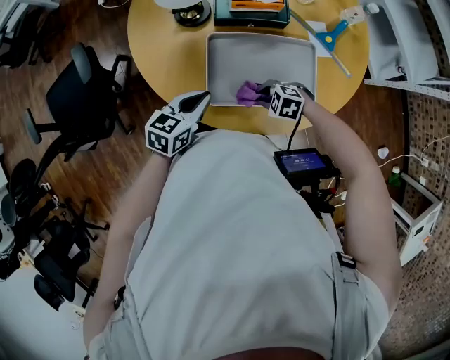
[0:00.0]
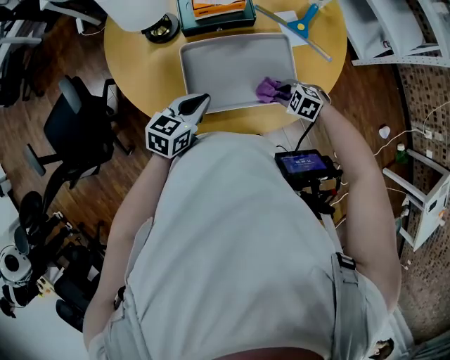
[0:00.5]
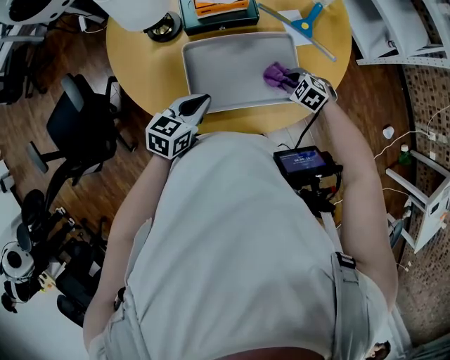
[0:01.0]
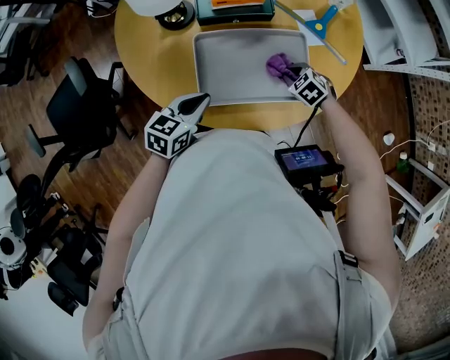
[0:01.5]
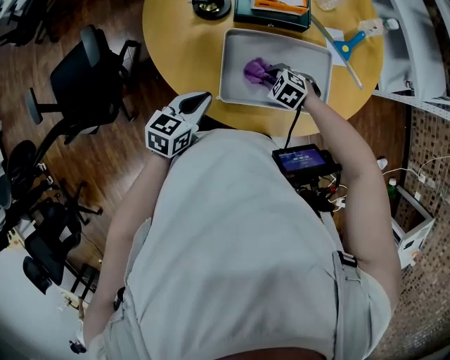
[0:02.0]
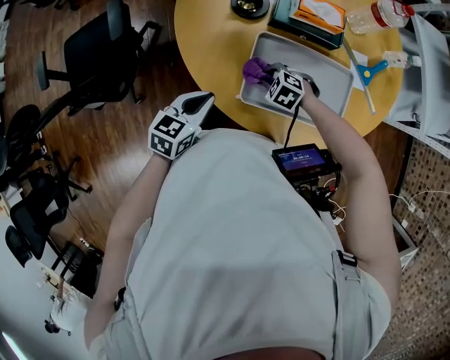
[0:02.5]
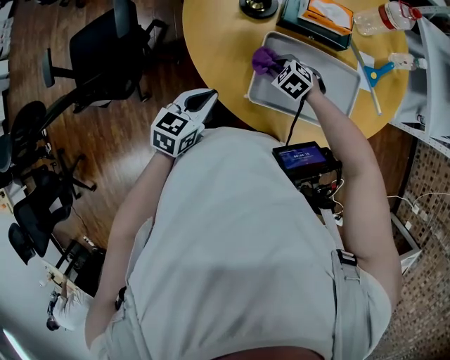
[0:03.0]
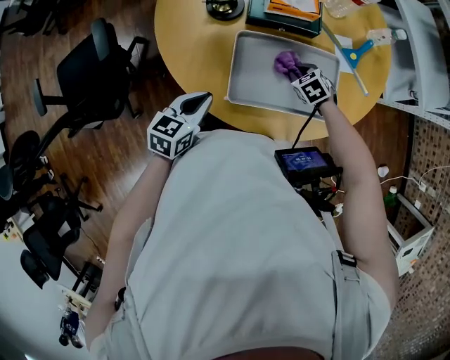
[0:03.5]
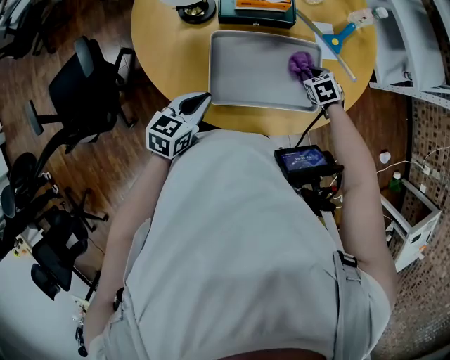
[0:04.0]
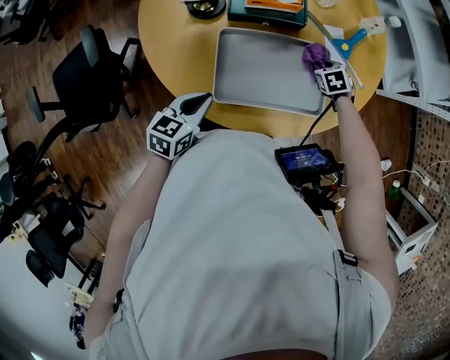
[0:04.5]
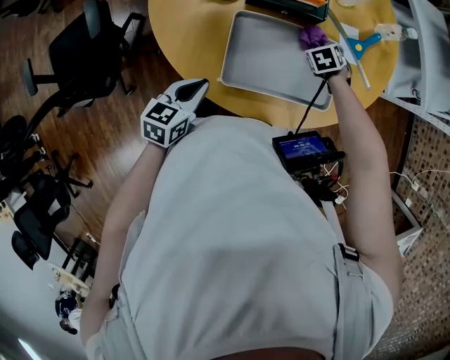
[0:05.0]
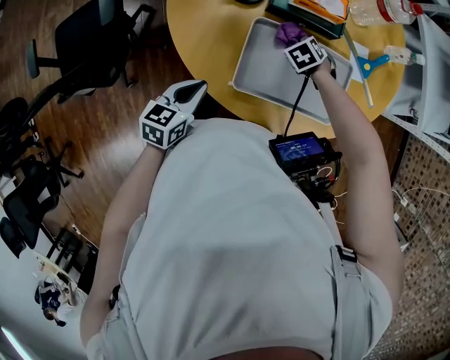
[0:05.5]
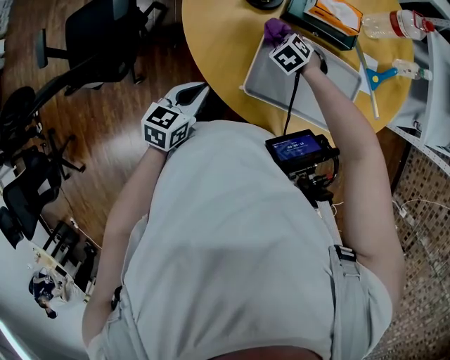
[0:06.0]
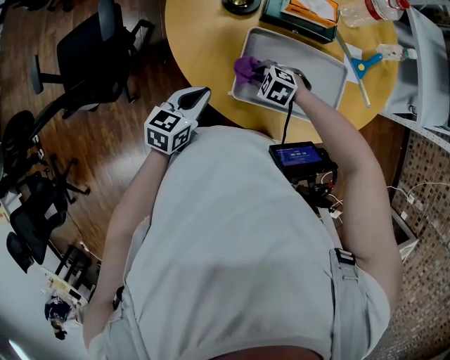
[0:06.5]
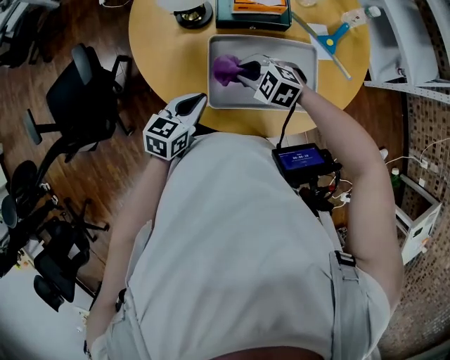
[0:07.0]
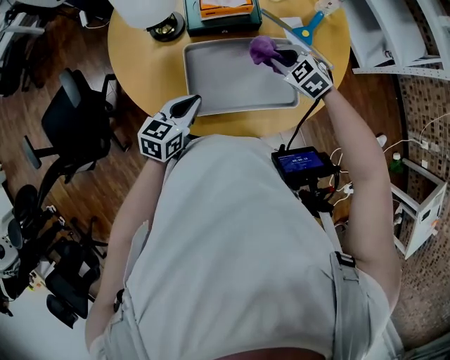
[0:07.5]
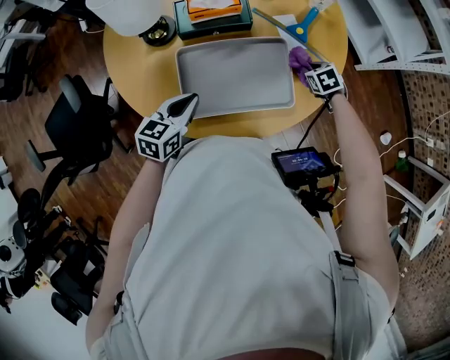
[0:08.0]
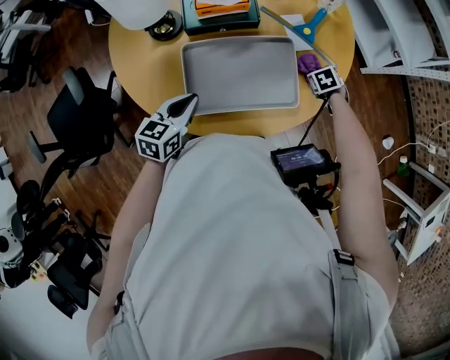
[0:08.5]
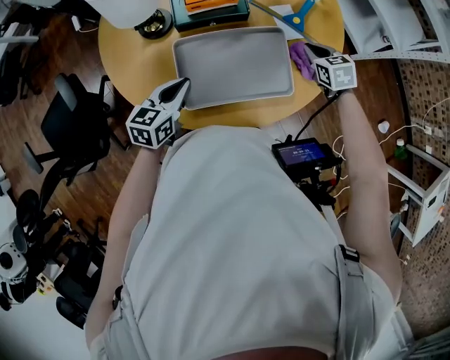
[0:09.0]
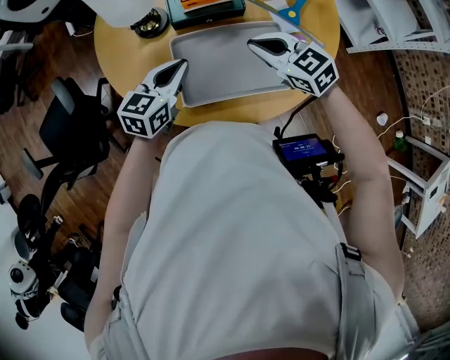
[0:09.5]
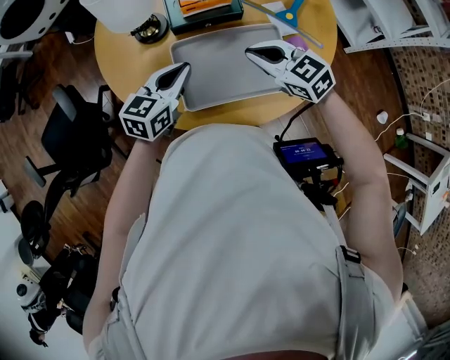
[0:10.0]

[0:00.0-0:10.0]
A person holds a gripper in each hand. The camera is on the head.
0:02.0 to 0:04.0: The right gripper moves some 20 cm, and changes its angle by about 40 degrees.
0:04.0 to 0:06.0: The right gripper changes place by some 30 cm, and rotates roughly 40 degrees. Meanwhile the left gripper moves roughly 10 cm.
0:06.0 to 0:08.0: The right gripper moves approximately 10 cm upward and comes back, and twists about 40 degrees clockwise, seen from behind, while the left gripper ends up about 20 cm from where it was, and rotates roughly 20 degrees.
0:08.0 to 0:10.0: The right gripper changes place by roughly 30 cm, and angles its fingers upward, by roughly 40 degrees. Meanwhile the left gripper moves approximately 10 cm.

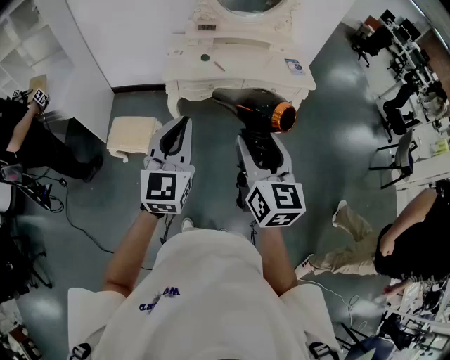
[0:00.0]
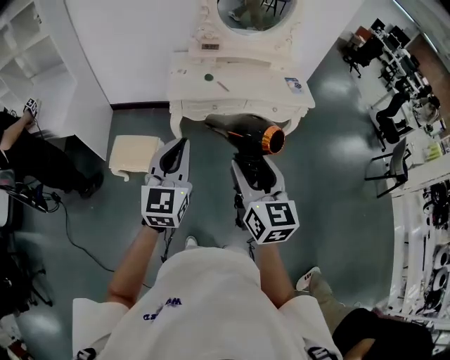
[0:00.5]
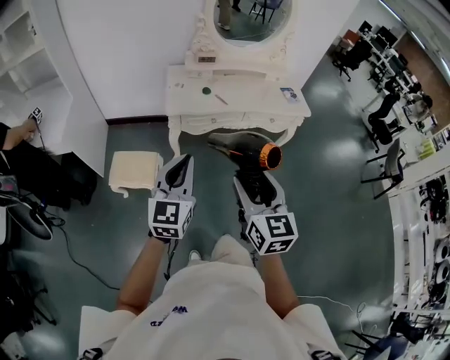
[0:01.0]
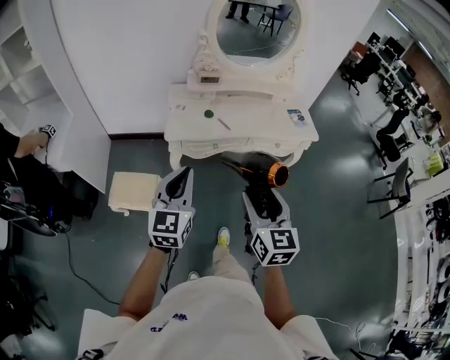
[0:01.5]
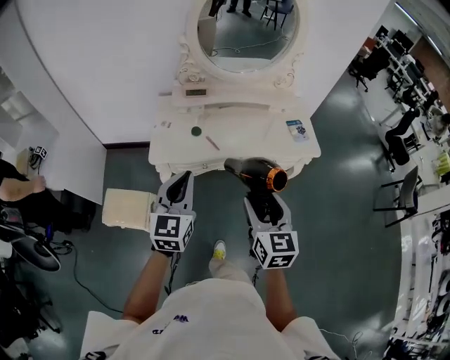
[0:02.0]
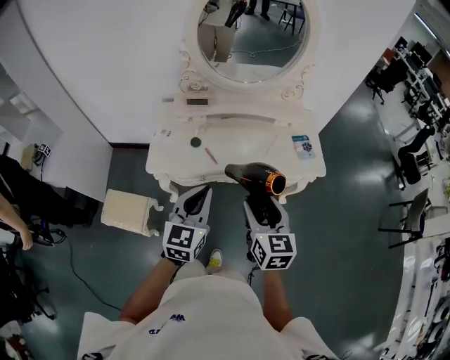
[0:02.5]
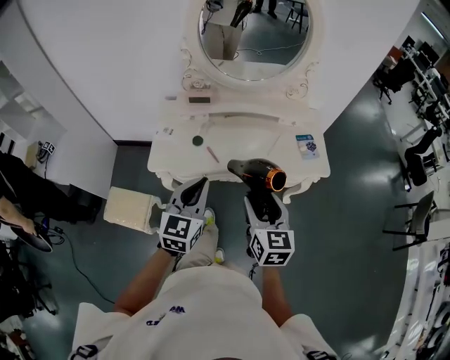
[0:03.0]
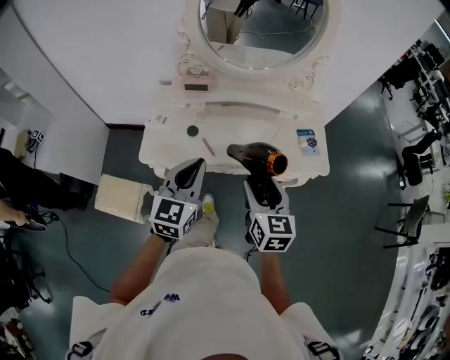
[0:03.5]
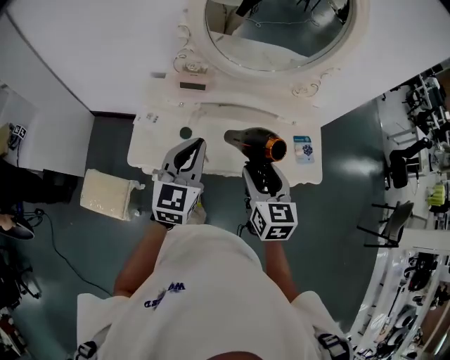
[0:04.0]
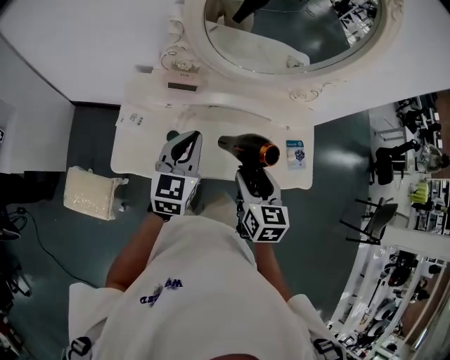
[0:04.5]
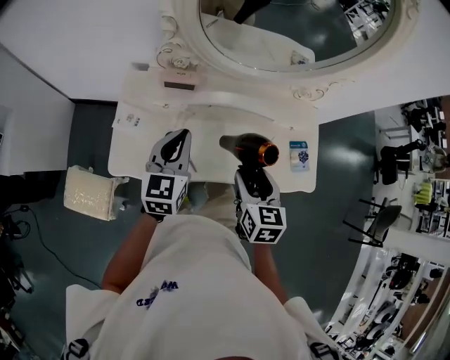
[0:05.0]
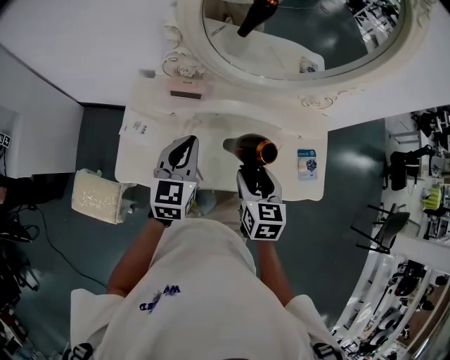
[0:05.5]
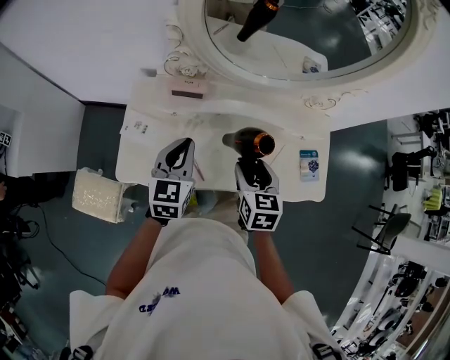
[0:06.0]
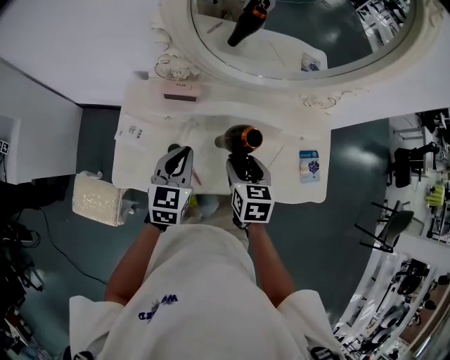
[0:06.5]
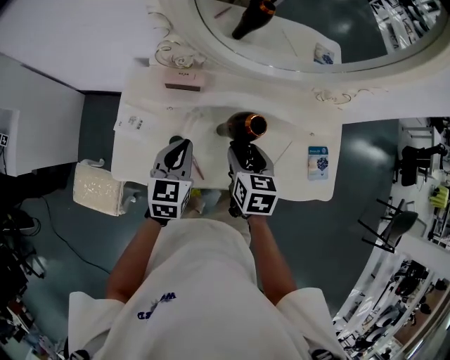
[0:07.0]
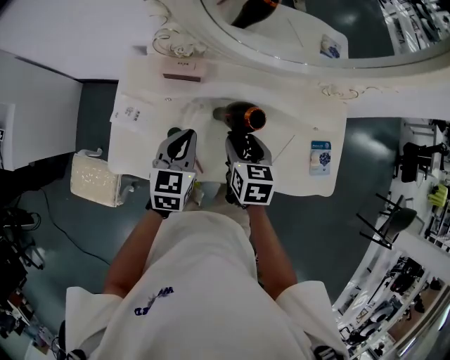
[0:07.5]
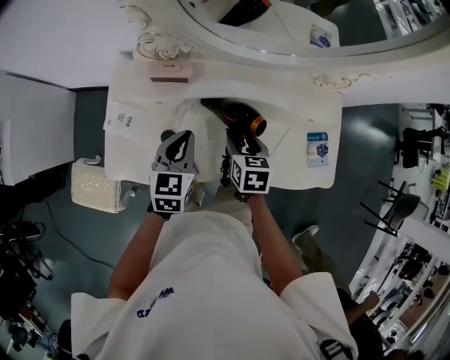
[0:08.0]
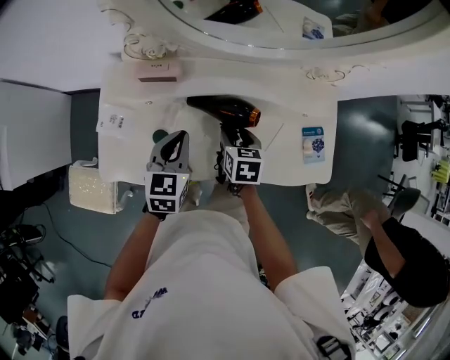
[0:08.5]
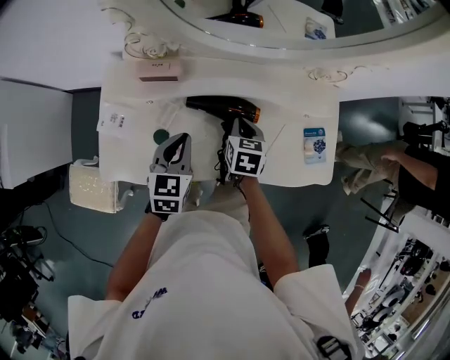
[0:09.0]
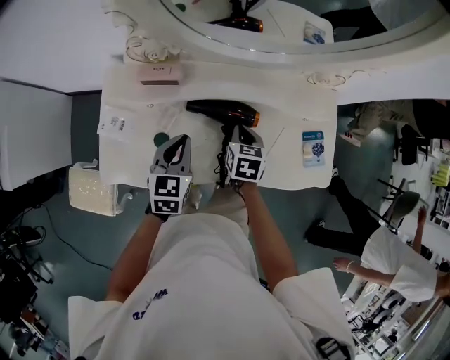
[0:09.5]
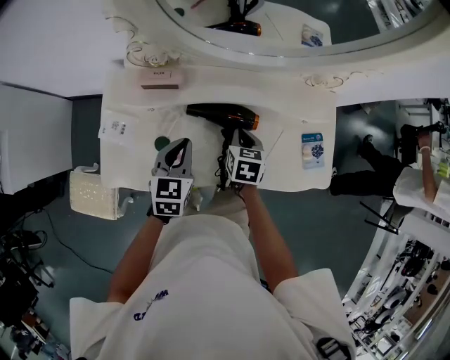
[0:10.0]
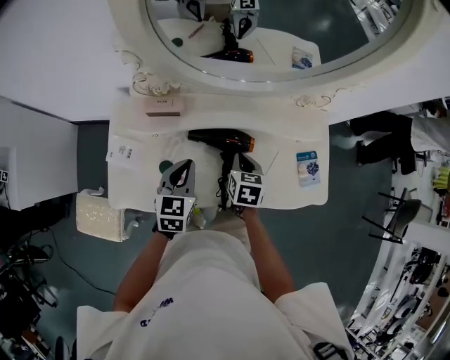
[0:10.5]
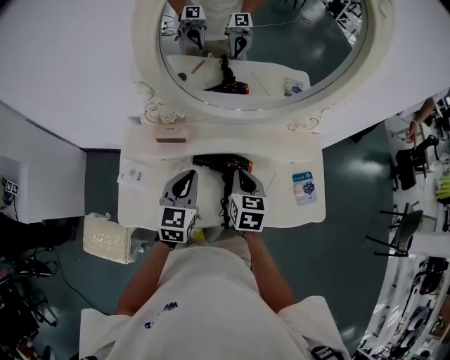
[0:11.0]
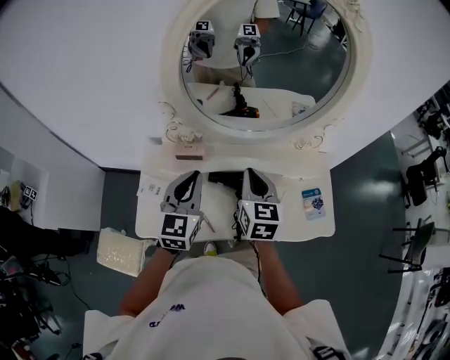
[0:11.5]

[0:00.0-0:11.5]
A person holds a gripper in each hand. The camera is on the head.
0:00.0 to 0:02.0: The two grippers go some 30 cm forward.
0:02.0 to 0:04.0: Both grippers move forward, roughly 25 cm.
0:04.0 to 0:06.0: Both grippers move forward and downward, roughly 20 cm.
0:06.0 to 0:07.5: The left gripper moves downward, some 10 cm; the right gripper shifts approximately 10 cm downward and forward.
0:07.5 to 0:09.5: The right gripper moves downward and to the right, about 10 cm, and closes its fingers.
0:09.5 to 0:11.5: The two grippers go roughly 25 cm upward. The left gripper changes its angle by some 20 degrees; the right gripper swivels about 30 degrees.

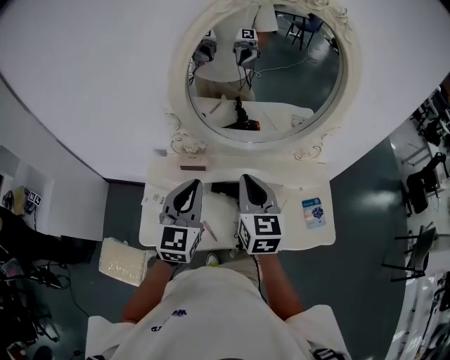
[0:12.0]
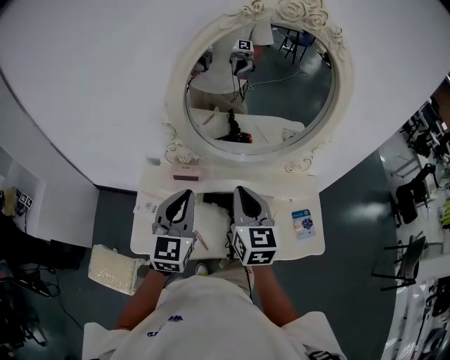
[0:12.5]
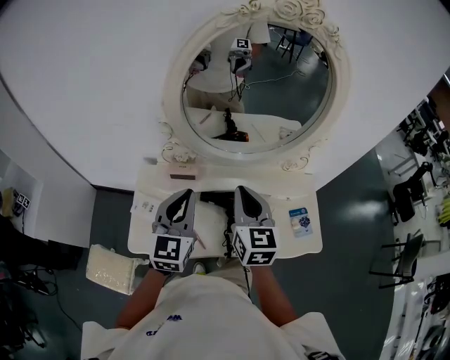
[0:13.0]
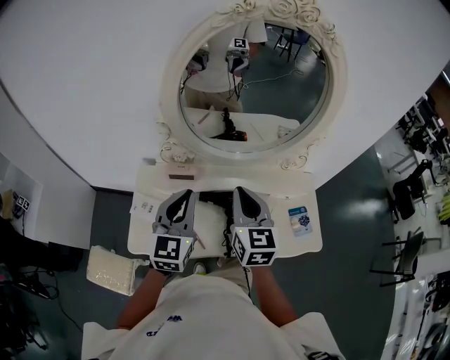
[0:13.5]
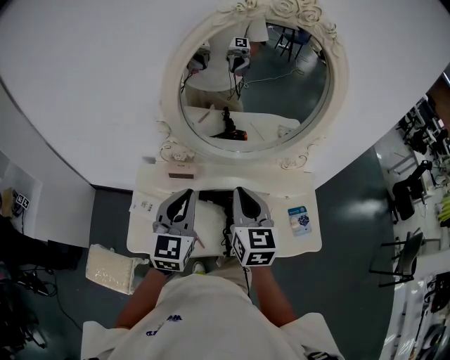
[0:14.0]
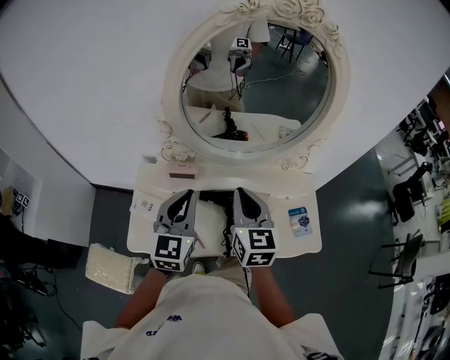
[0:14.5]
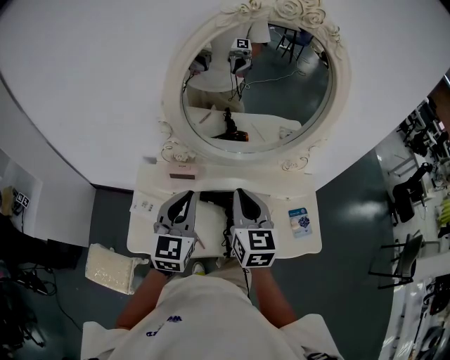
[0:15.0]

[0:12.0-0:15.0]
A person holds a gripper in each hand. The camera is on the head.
0:12.0 to 0:13.5: There are only small adjustments of the grippers.
0:13.5 to 0:15.0: Both grippers stay put.

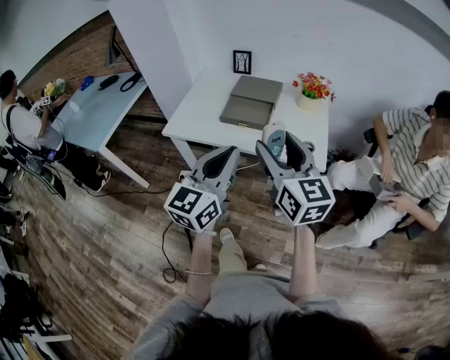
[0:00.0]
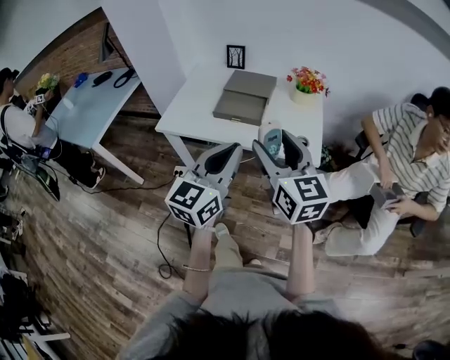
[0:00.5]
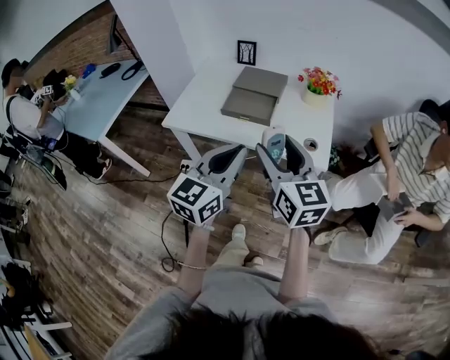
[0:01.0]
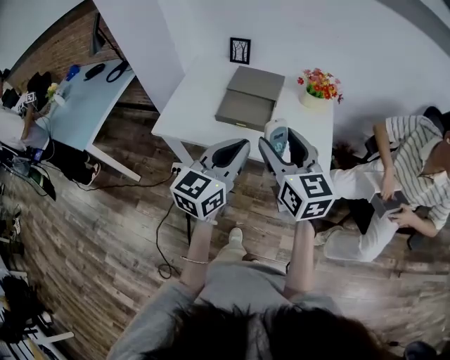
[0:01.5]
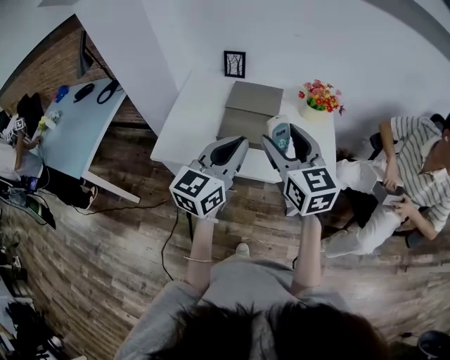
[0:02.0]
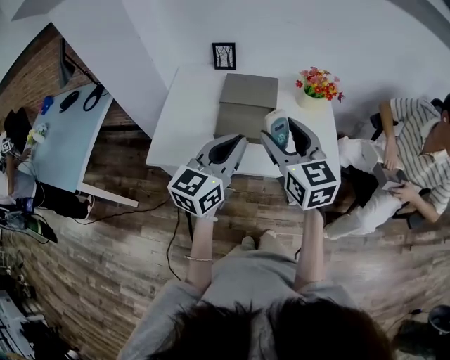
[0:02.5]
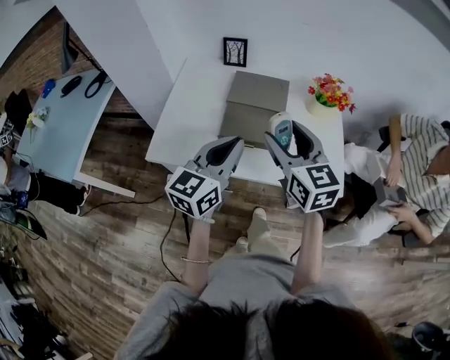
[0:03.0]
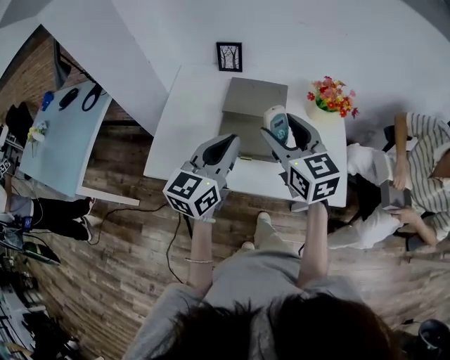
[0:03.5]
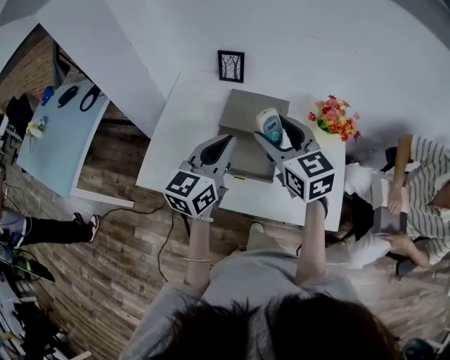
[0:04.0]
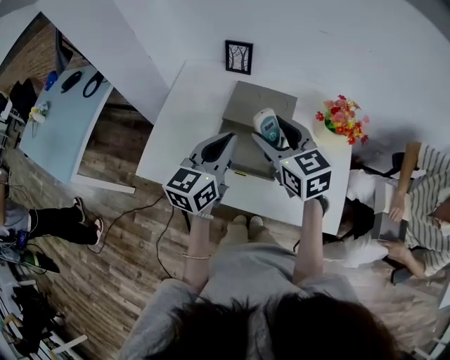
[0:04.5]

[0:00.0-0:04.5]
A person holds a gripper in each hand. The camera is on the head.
0:00.0 to 0:02.0: The grippers both shift forward by about 20 cm.
0:02.0 to 0:04.5: The left gripper travels forward by roughly 20 cm, while the right gripper moves forward and downward, roughly 25 cm.
